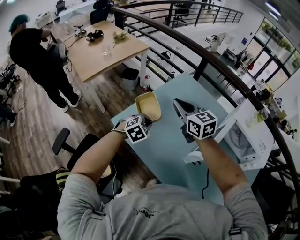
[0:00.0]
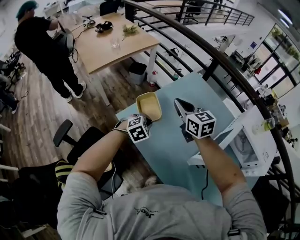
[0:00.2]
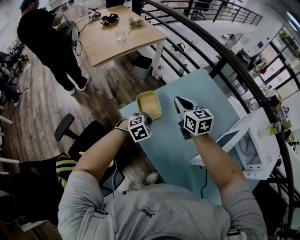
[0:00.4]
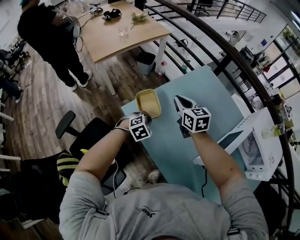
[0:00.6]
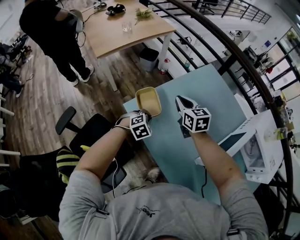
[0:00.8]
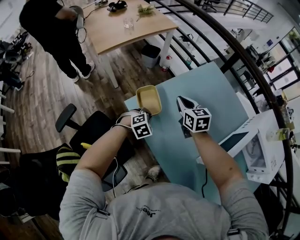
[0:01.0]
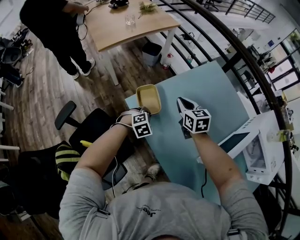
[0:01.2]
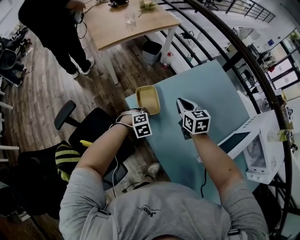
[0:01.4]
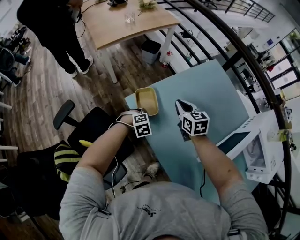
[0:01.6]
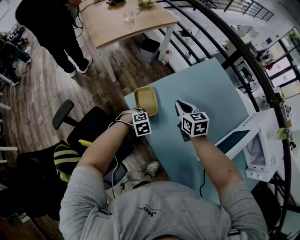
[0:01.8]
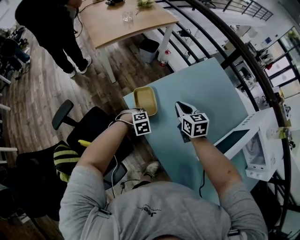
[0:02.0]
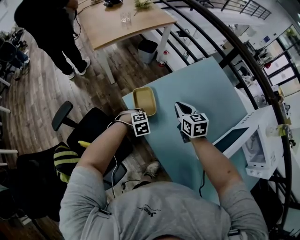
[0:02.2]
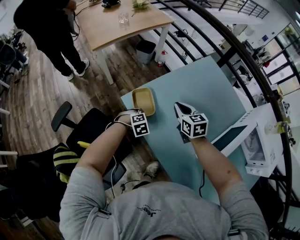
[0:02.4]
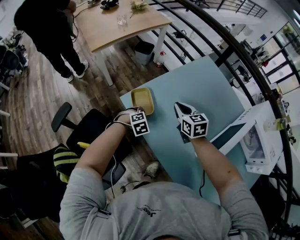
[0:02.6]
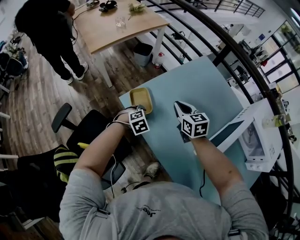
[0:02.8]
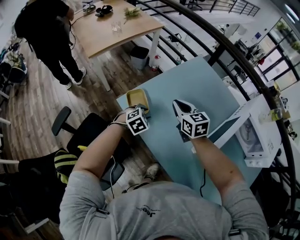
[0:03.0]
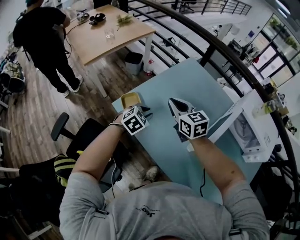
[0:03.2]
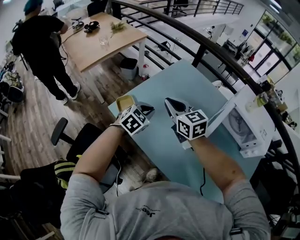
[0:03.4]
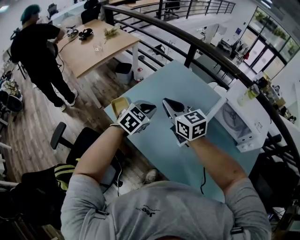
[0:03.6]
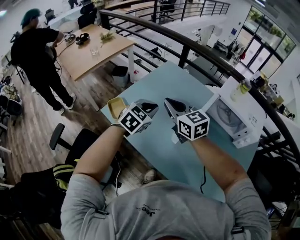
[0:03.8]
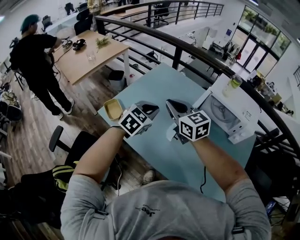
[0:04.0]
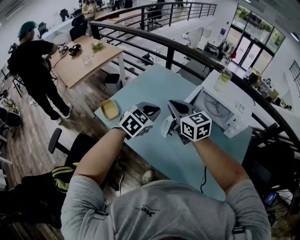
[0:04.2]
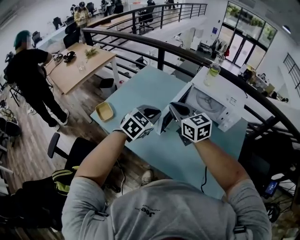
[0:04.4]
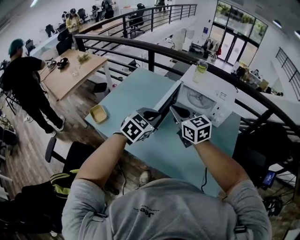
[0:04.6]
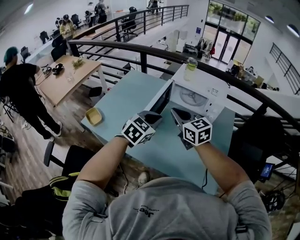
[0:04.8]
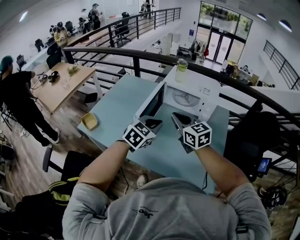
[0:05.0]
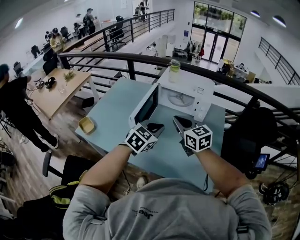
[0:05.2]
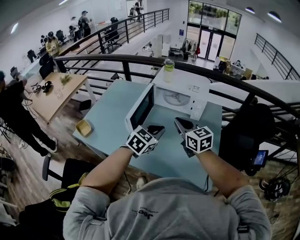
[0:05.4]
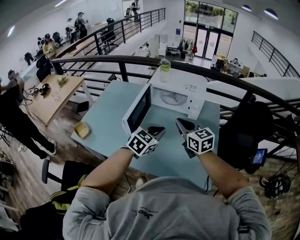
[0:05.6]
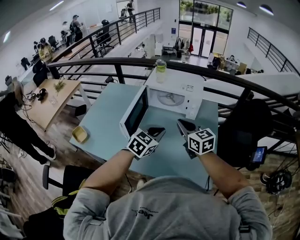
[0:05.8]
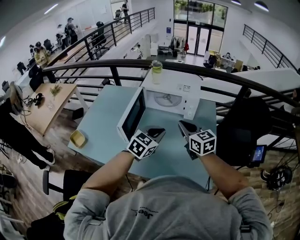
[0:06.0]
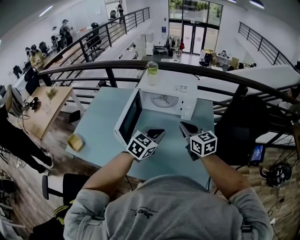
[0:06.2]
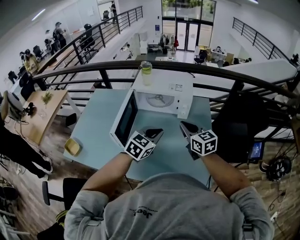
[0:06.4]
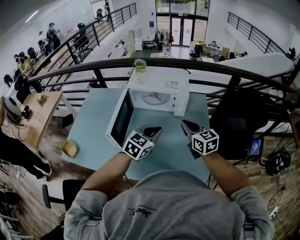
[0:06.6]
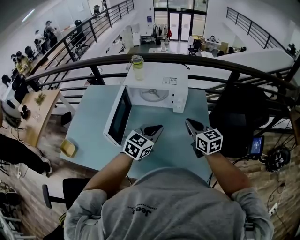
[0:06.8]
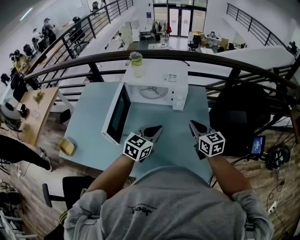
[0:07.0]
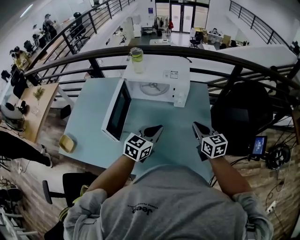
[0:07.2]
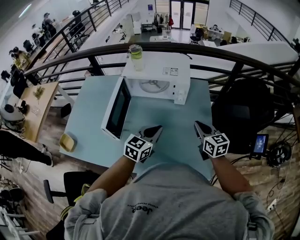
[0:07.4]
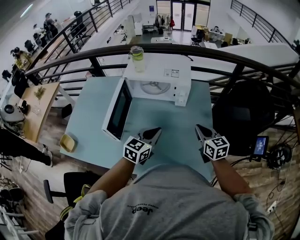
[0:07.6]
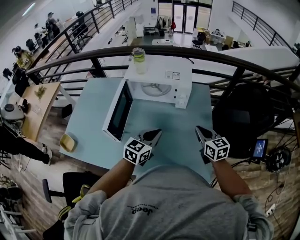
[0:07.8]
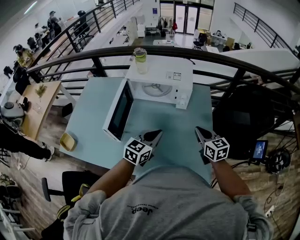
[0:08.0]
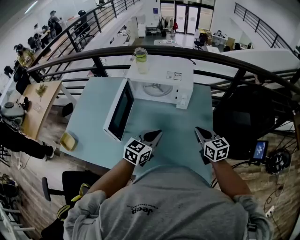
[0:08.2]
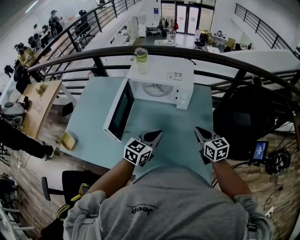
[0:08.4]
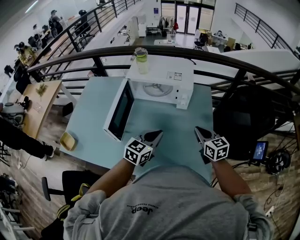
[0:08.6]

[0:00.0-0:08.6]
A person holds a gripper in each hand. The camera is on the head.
0:00.0 to 0:01.4: The grippers both shift downward and to the left by about 20 cm.
0:01.4 to 0:02.8: The left gripper opens up. Meanwhile the right gripper shifts some 5 cm backward.
0:02.8 to 0:04.4: The left gripper heads to the right, upward and backward, covering about 50 cm, tilts its fingers roughly 30 degrees upward, and closes, while the right gripper travels to the right, backward and upward by about 40 cm, and rotates roughly 20 degrees.
0:04.4 to 0:05.8: The two grippers go roughly 25 cm to the right. The right gripper turns by some 20 degrees.
0:05.8 to 0:07.2: The right gripper is displaced to the right and downward by some 15 cm, while the left gripper goes approximately 5 cm forward.
0:07.2 to 0:08.6: There are only small adjustments of the grippers.

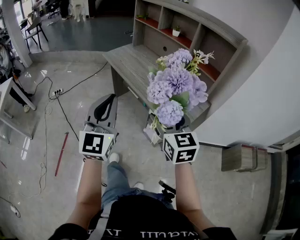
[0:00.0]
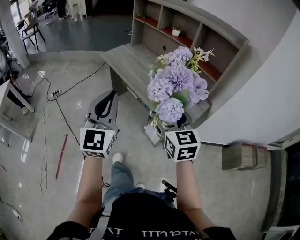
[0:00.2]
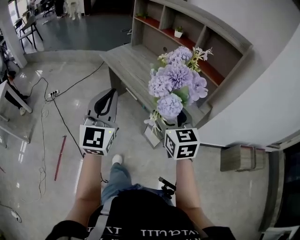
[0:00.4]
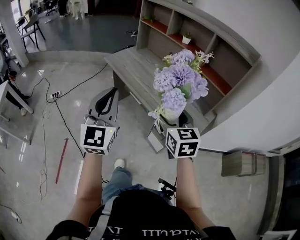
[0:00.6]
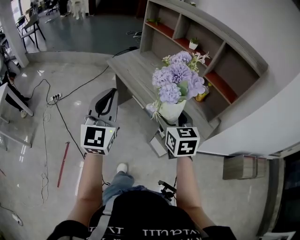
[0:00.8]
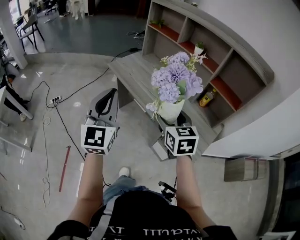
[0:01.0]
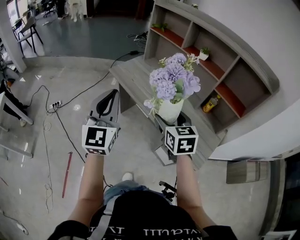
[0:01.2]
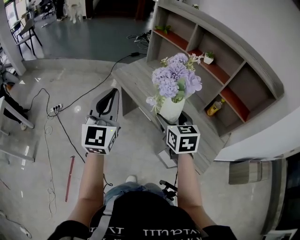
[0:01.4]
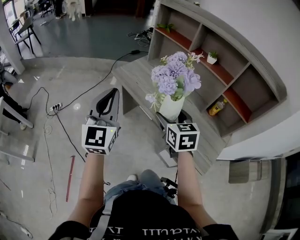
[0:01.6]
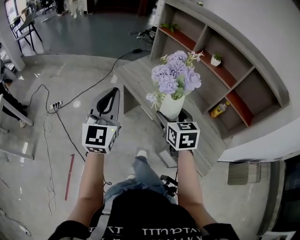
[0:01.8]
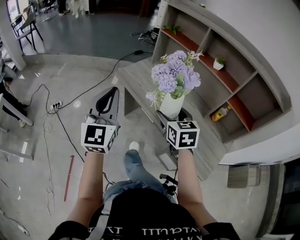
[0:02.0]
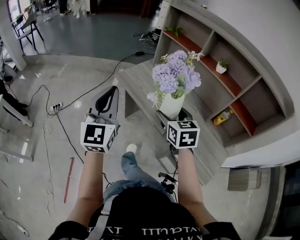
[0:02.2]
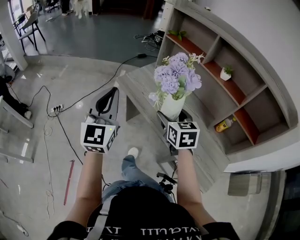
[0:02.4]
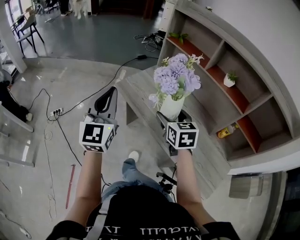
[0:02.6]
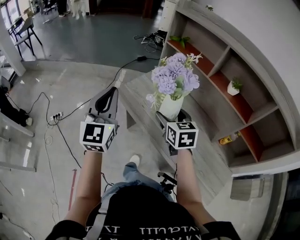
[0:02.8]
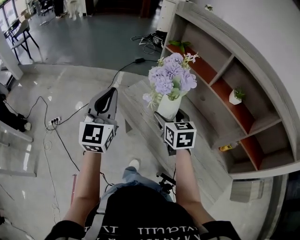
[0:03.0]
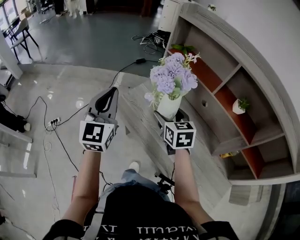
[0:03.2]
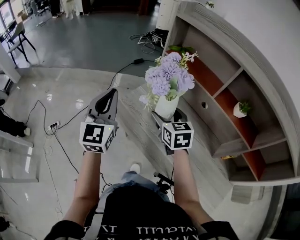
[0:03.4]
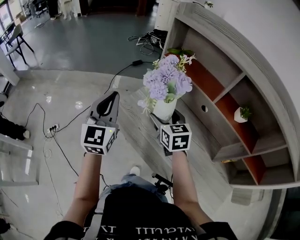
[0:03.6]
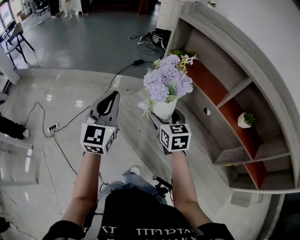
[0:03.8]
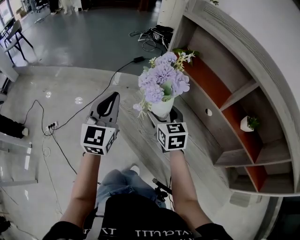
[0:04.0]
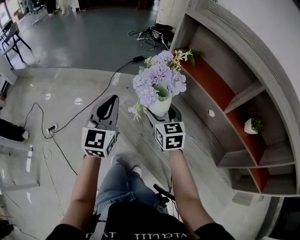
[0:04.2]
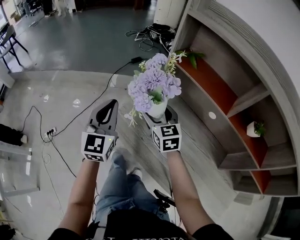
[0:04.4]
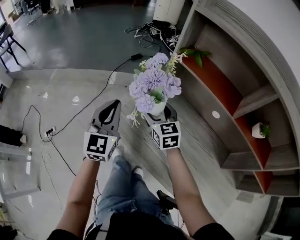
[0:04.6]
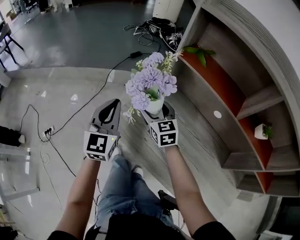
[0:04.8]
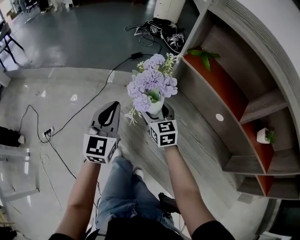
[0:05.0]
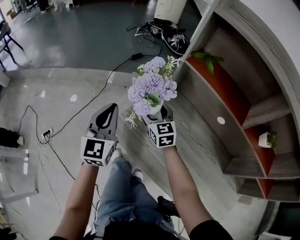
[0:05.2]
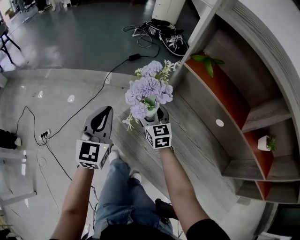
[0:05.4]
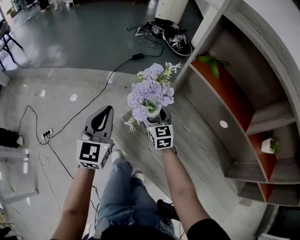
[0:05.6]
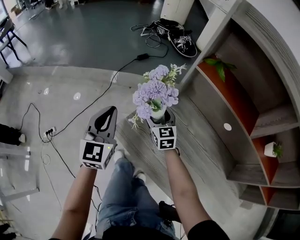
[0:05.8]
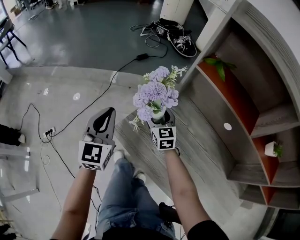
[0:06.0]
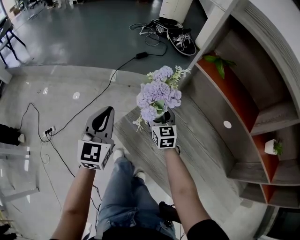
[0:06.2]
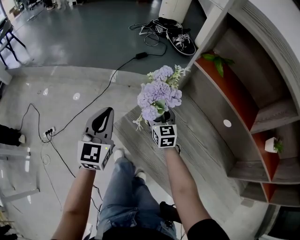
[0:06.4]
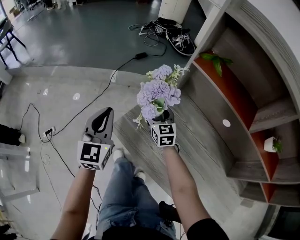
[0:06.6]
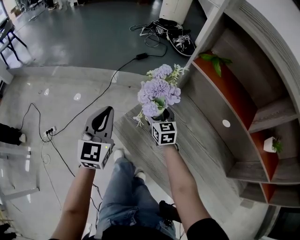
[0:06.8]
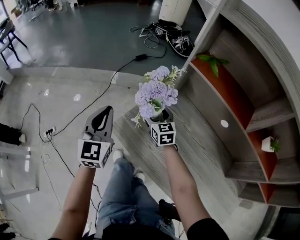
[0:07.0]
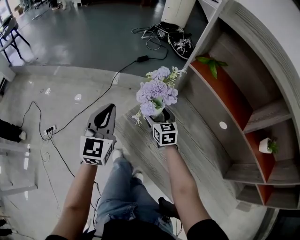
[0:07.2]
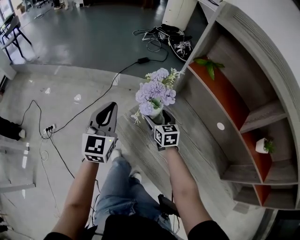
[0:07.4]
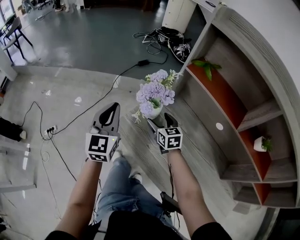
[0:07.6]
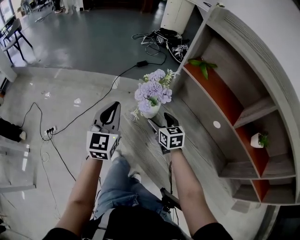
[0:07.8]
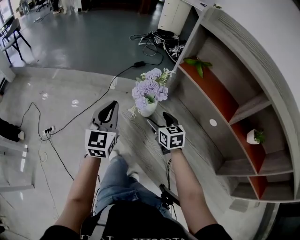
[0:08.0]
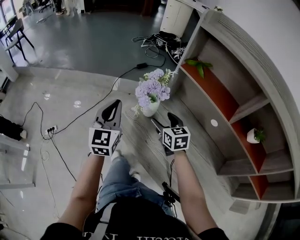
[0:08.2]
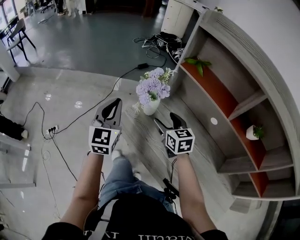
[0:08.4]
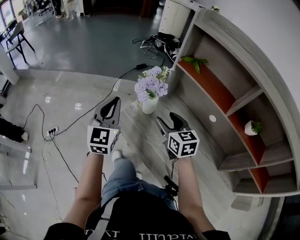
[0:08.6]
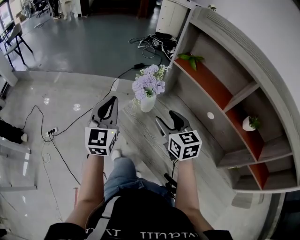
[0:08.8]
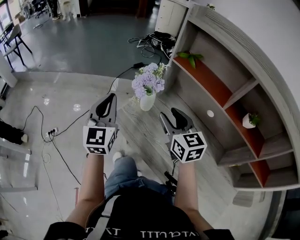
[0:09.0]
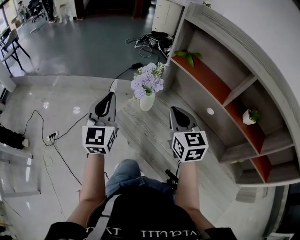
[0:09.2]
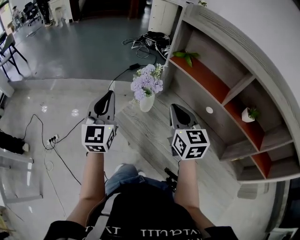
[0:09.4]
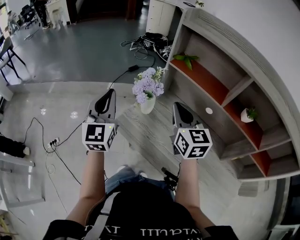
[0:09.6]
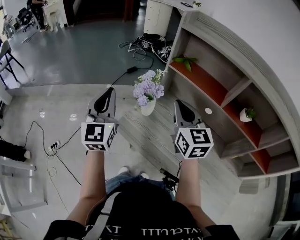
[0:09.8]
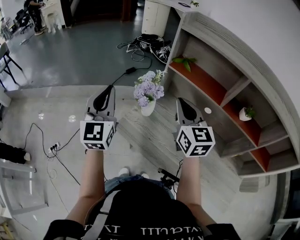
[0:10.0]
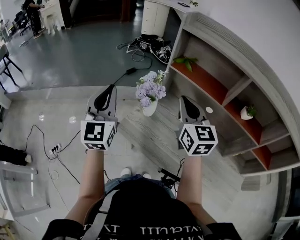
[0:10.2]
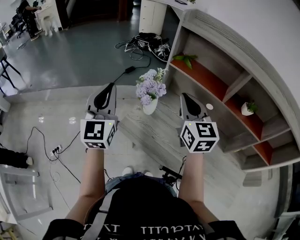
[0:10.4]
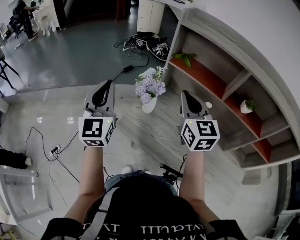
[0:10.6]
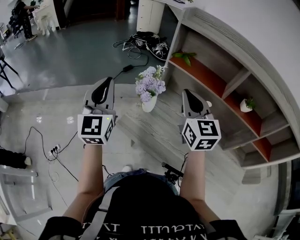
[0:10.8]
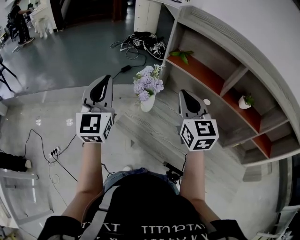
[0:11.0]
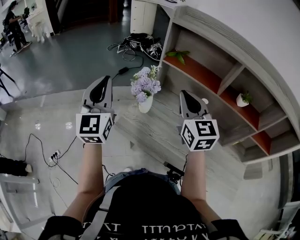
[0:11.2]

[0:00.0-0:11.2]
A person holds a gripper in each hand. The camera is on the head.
0:00.0 to 0:01.6: The two grippers go about 40 cm forward and to the left.
0:01.6 to 0:03.2: The two grippers go roughly 35 cm forward.
0:03.2 to 0:04.8: Both grippers move forward and downward, about 20 cm.
0:04.8 to 0:06.4: The left gripper is displaced to the left by approximately 5 cm; the right gripper shifts some 10 cm downward and forward.
0:06.4 to 0:08.0: The left gripper changes place by about 5 cm. The right gripper is displaced backward and upward by some 10 cm.
0:08.0 to 0:09.6: The right gripper moves upward, approximately 20 cm, swivels about 30 degrees, and closes its fingers, while the left gripper shifts roughly 10 cm upward.
0:09.6 to 0:11.2: Both grippers move upward, some 5 cm.

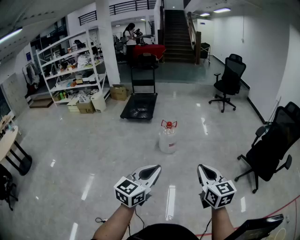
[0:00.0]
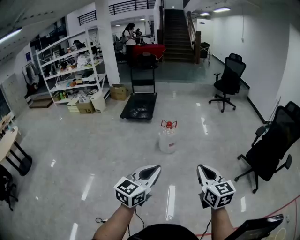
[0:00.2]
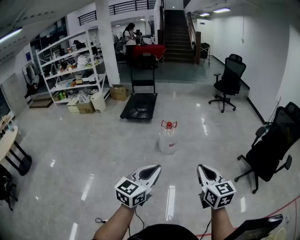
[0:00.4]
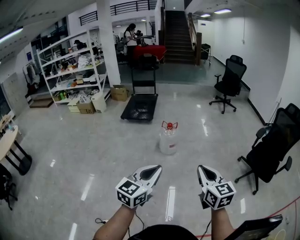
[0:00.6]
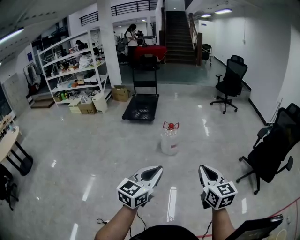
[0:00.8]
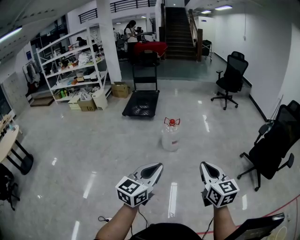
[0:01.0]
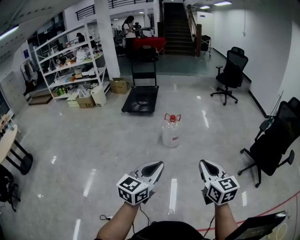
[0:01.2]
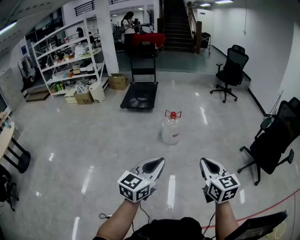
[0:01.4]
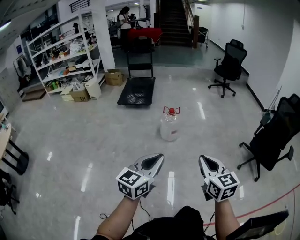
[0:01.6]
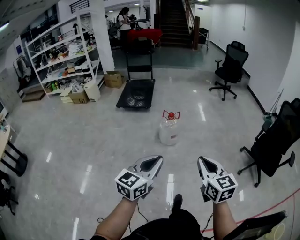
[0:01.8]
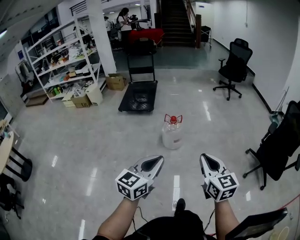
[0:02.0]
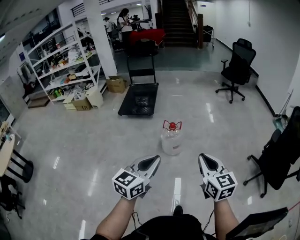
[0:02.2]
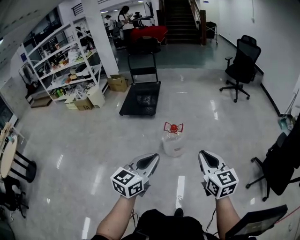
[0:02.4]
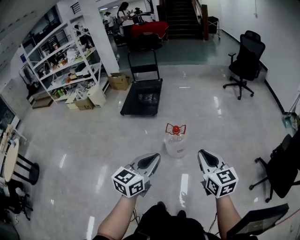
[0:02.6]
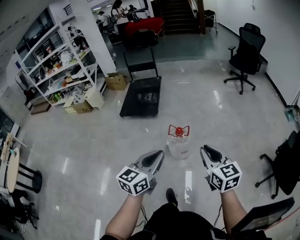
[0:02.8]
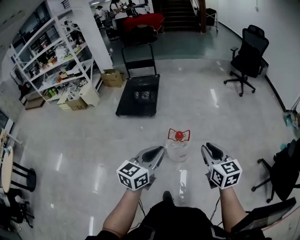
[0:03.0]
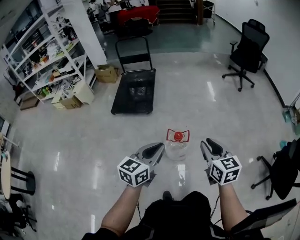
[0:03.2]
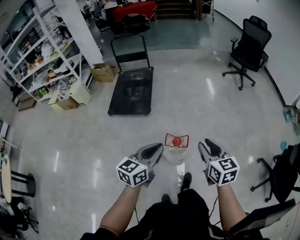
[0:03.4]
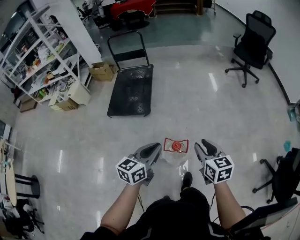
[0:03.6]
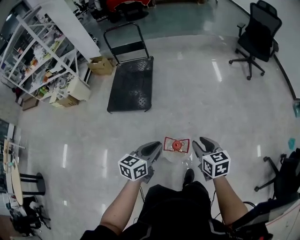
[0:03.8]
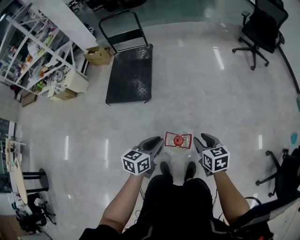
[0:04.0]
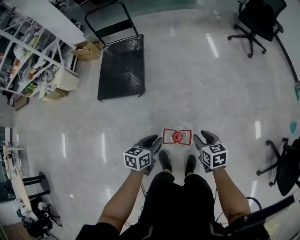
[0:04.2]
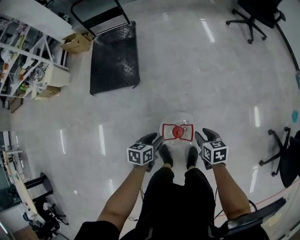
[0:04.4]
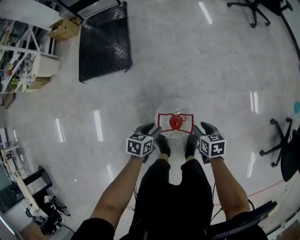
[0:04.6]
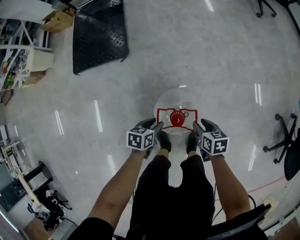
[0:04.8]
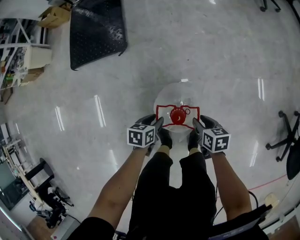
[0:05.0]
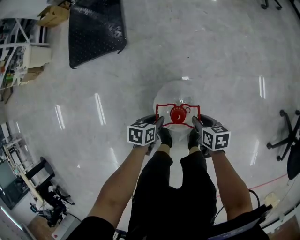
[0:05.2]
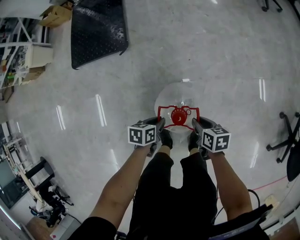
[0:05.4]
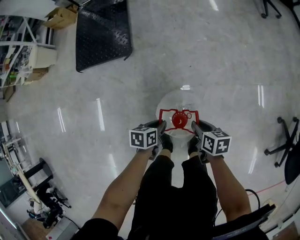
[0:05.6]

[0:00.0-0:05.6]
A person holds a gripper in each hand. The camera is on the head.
0:00.0 to 0:01.4: Both grippers travel together to the left, roughly 5 cm.
0:01.4 to 0:02.8: The two grippers travel together, forward, about 50 cm.
0:02.8 to 0:04.2: The pair of grippers is taken forward, about 40 cm. Both grippers move downward, about 30 cm. The right gripper rotates some 30 degrees, and opens, while the left gripper rotates roughly 30 degrees, and opens its fingers.
0:04.2 to 0:05.6: The two grippers go roughly 25 cm downward. The right gripper turns by roughly 30 degrees, while the left gripper changes its angle by about 30 degrees.
